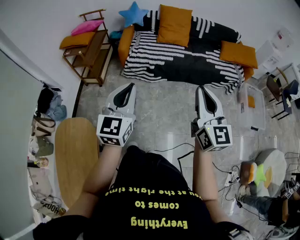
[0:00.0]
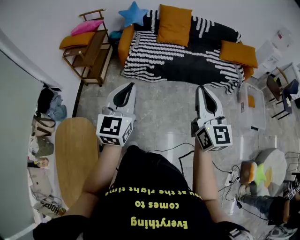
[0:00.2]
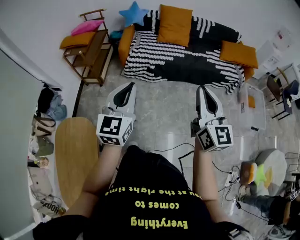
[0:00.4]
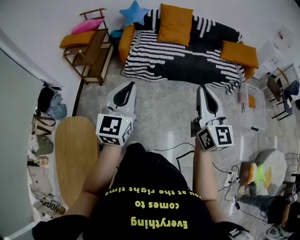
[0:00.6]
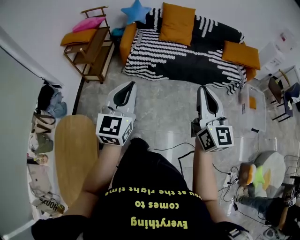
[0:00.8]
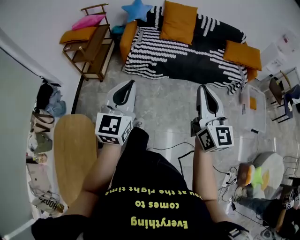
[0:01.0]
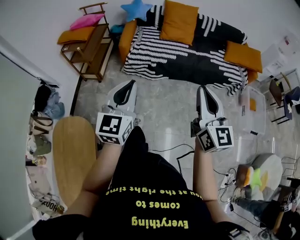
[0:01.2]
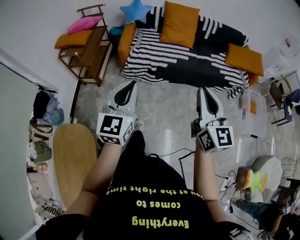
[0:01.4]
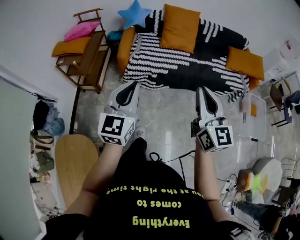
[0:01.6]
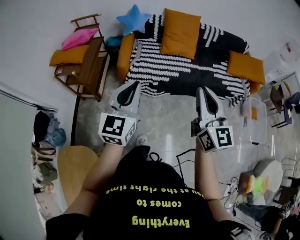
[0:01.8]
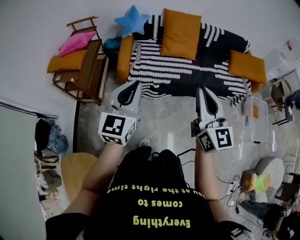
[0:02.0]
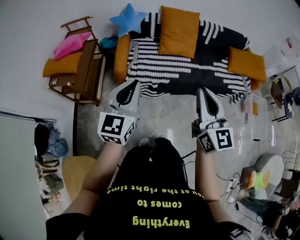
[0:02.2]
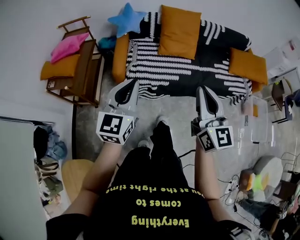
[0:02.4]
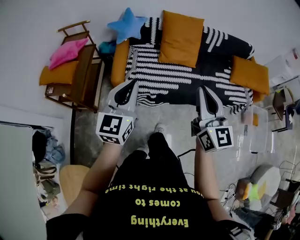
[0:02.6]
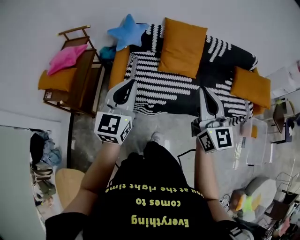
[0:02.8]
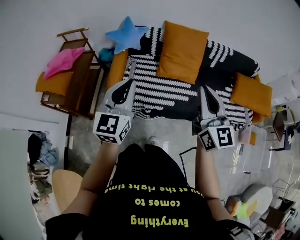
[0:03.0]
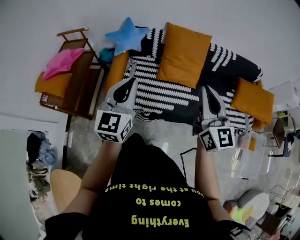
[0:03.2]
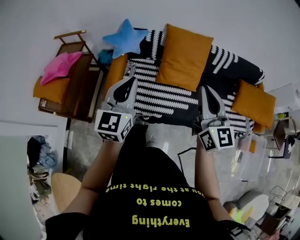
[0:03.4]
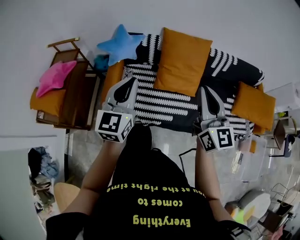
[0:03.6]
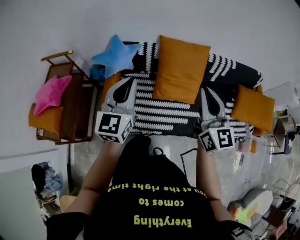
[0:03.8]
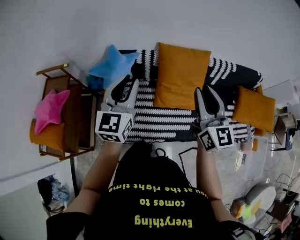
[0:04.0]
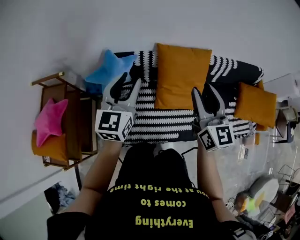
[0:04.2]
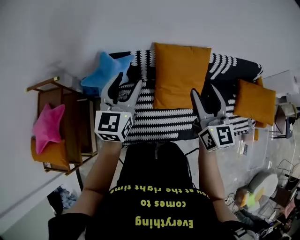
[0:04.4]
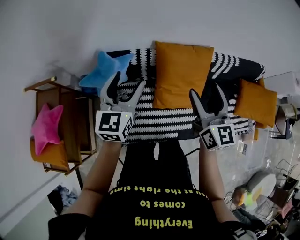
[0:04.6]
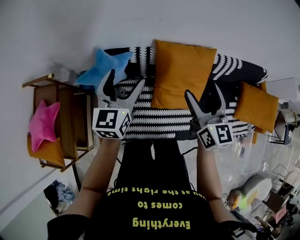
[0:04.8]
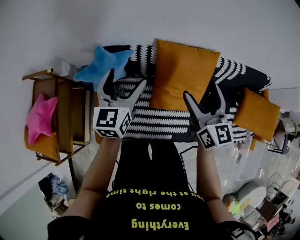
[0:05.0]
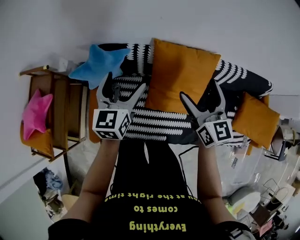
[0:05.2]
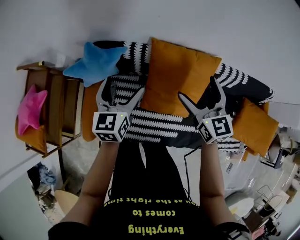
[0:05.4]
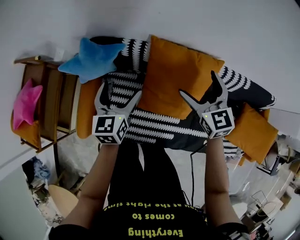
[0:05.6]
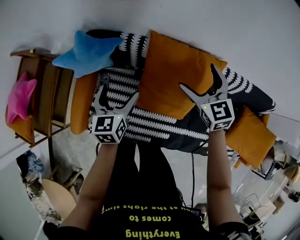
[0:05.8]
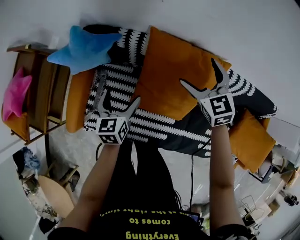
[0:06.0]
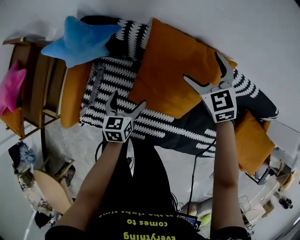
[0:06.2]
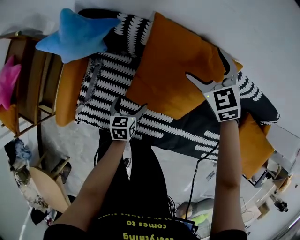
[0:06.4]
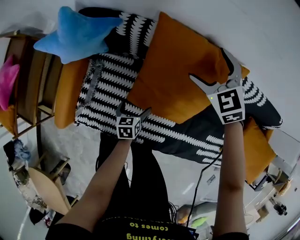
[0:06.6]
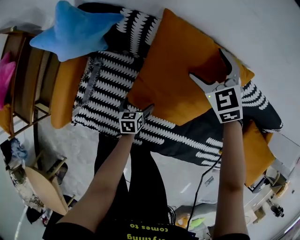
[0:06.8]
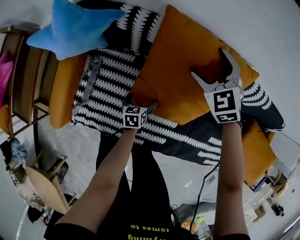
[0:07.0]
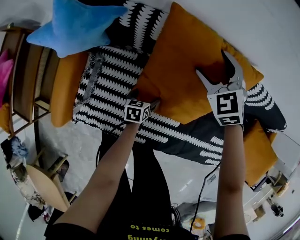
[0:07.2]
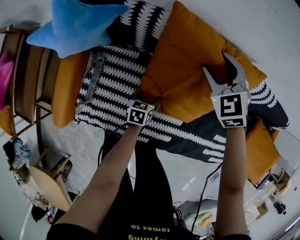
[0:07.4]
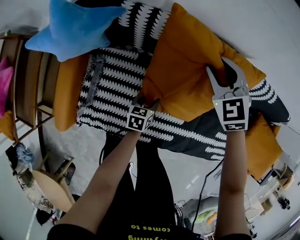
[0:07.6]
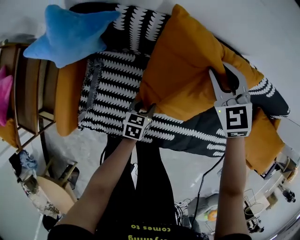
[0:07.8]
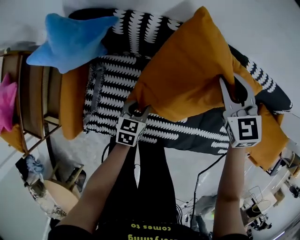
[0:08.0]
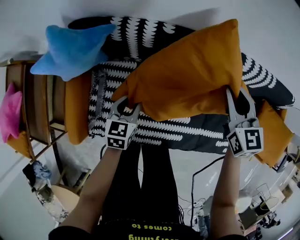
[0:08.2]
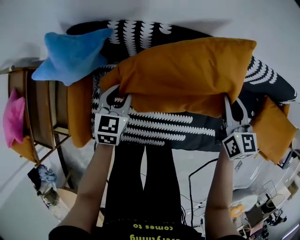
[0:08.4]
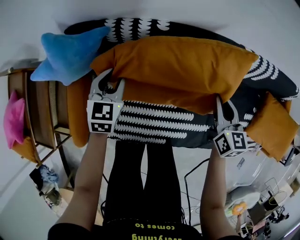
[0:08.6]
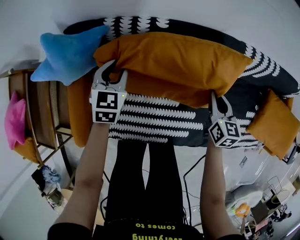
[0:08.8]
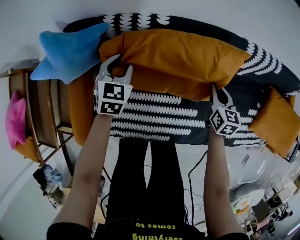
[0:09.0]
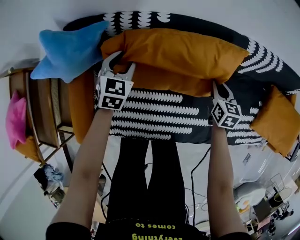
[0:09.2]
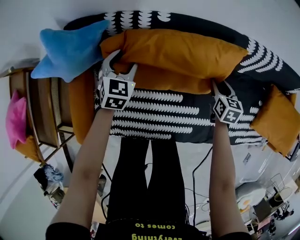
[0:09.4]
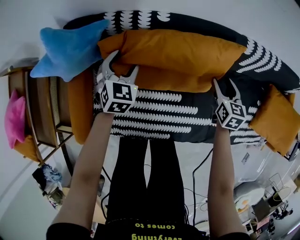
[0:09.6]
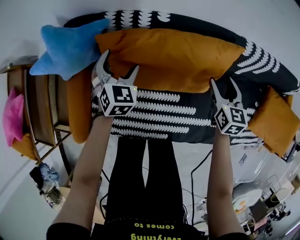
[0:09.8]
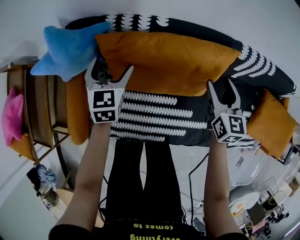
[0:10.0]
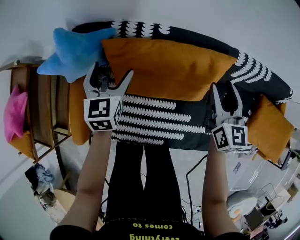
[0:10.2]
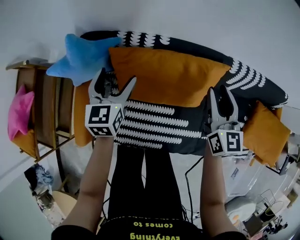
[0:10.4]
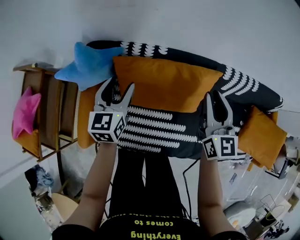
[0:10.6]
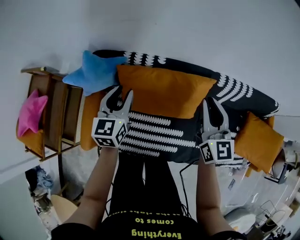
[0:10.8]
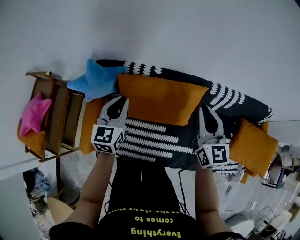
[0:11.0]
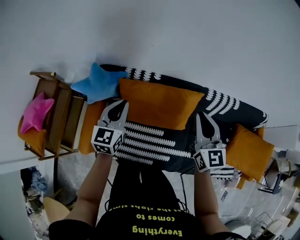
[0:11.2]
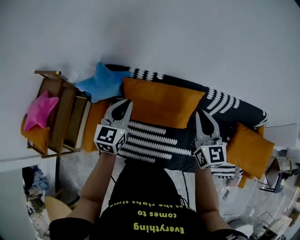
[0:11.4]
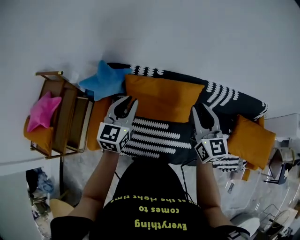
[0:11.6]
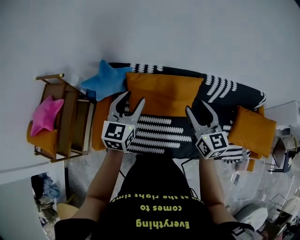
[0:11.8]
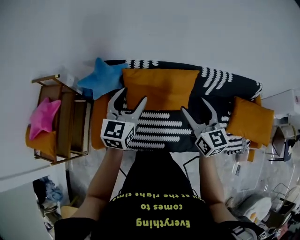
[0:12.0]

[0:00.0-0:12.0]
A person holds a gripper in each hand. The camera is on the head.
0.0 to 1.6 s: The grippers both shift forward by approximately 20 cm.
1.6 to 3.0 s: The pair of grippers is taken forward, some 40 cm.
3.0 to 4.4 s: Both grippers travel together forward, about 40 cm. The right gripper opens its fingers, while the left gripper opens its fingers.
4.4 to 6.0 s: The right gripper moves roughly 35 cm, changes its angle by approximately 50 degrees, and opens its fingers, while the left gripper shifts some 30 cm downward, changes its angle by approximately 40 degrees, and opens up.
6.0 to 7.6 s: The left gripper shifts some 25 cm downward, rotates approximately 30 degrees, and closes up; the right gripper travels downward by about 10 cm, and closes up.
7.6 to 9.0 s: The right gripper travels to the right, downward and backward by some 20 cm, and rotates around the line of its fingers by about 60 degrees, clockwise from behind, while the left gripper moves upward, forward and to the left, approximately 25 cm, and changes its angle by some 40 degrees.
9.0 to 10.4 s: The left gripper is displaced upward by roughly 15 cm, changes its angle by about 30 degrees, and opens, while the right gripper moves upward, roughly 25 cm, and turns by about 30 degrees.
10.4 to 12.0 s: The right gripper goes about 25 cm backward and upward. The left gripper goes roughly 30 cm upward and backward, and closes, then opens again.

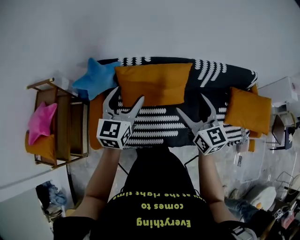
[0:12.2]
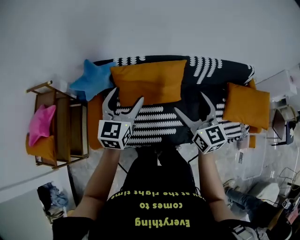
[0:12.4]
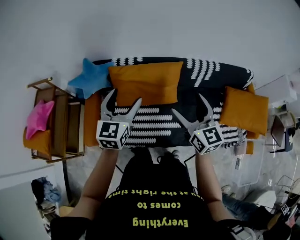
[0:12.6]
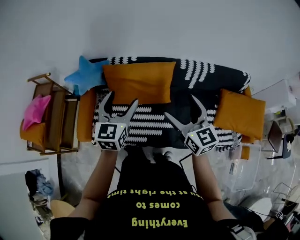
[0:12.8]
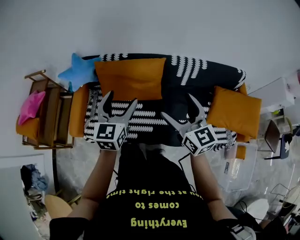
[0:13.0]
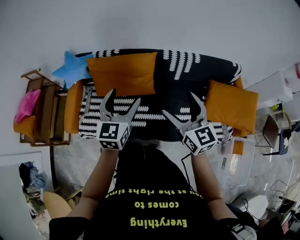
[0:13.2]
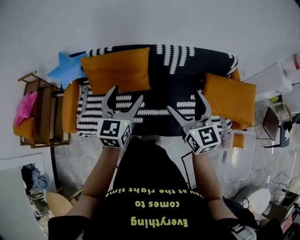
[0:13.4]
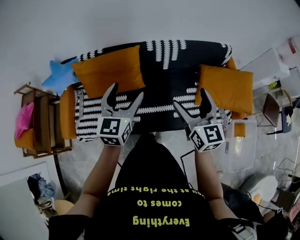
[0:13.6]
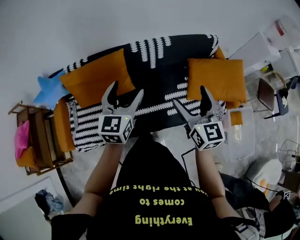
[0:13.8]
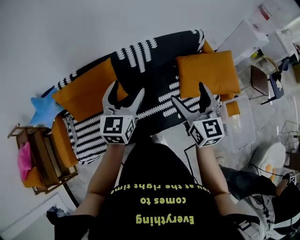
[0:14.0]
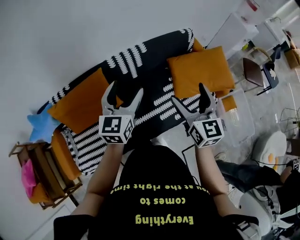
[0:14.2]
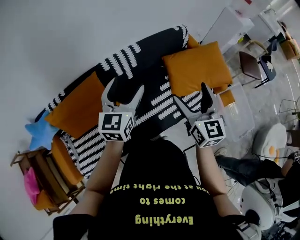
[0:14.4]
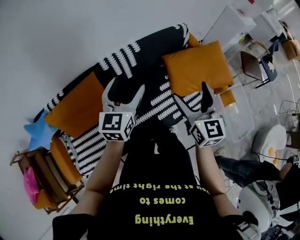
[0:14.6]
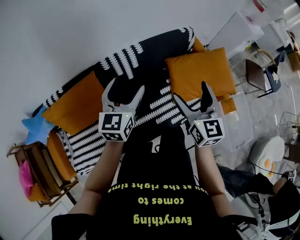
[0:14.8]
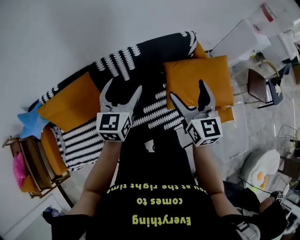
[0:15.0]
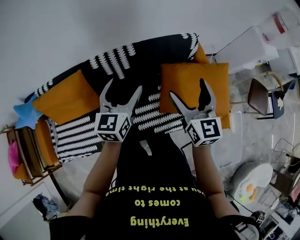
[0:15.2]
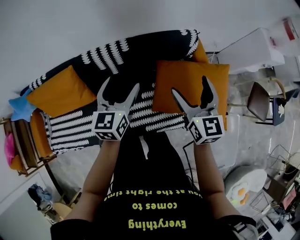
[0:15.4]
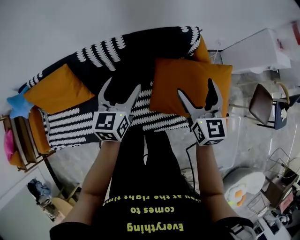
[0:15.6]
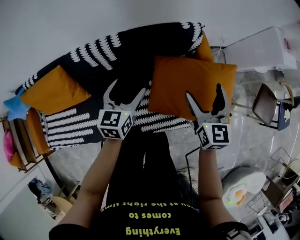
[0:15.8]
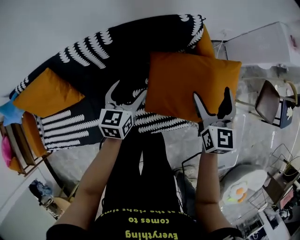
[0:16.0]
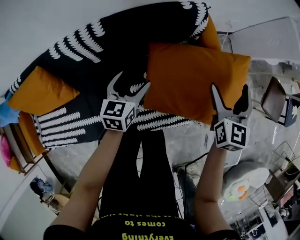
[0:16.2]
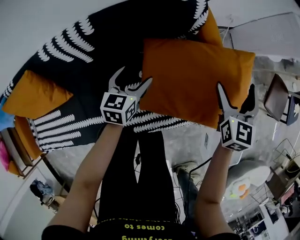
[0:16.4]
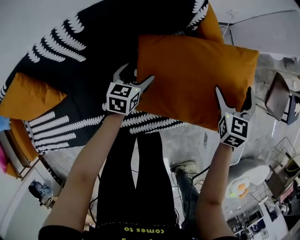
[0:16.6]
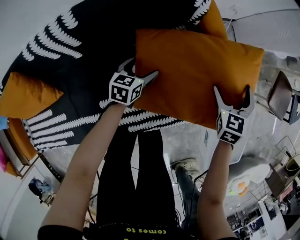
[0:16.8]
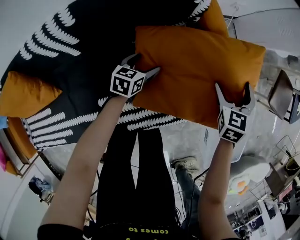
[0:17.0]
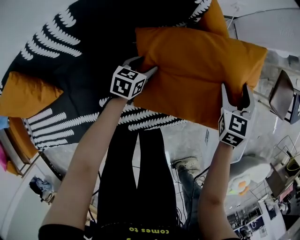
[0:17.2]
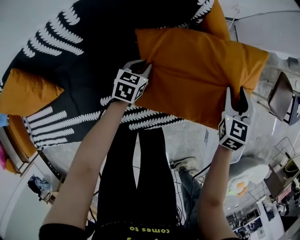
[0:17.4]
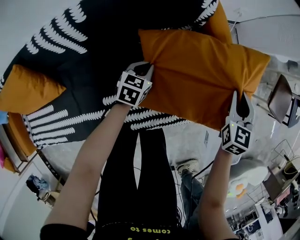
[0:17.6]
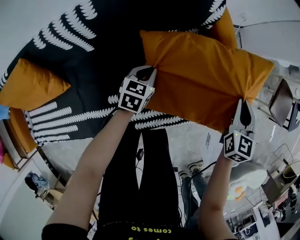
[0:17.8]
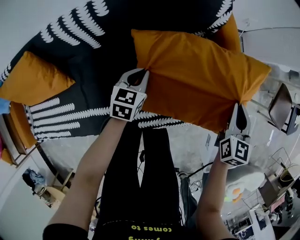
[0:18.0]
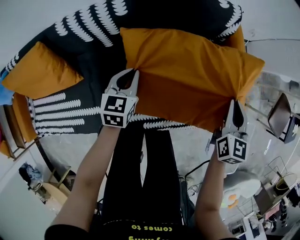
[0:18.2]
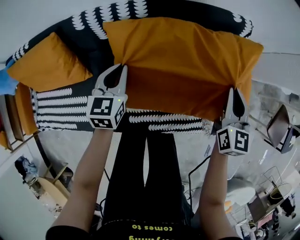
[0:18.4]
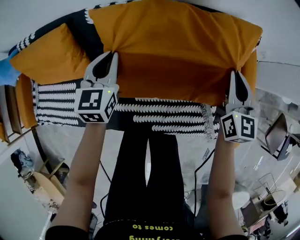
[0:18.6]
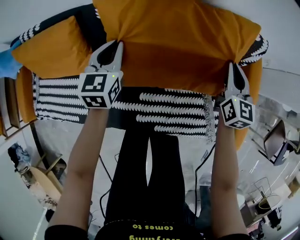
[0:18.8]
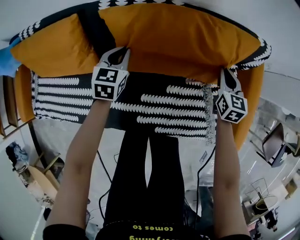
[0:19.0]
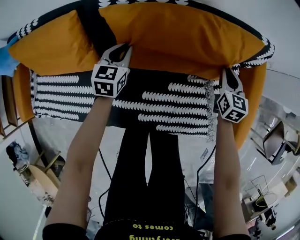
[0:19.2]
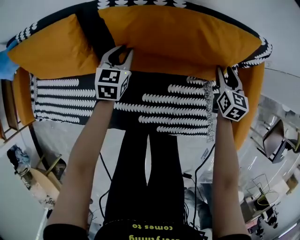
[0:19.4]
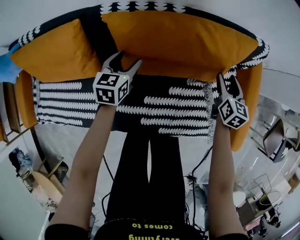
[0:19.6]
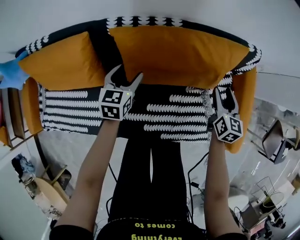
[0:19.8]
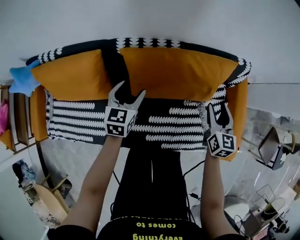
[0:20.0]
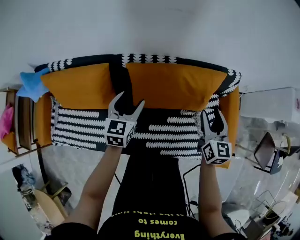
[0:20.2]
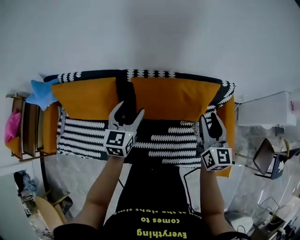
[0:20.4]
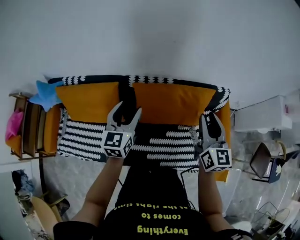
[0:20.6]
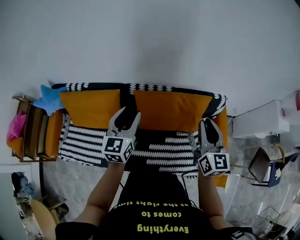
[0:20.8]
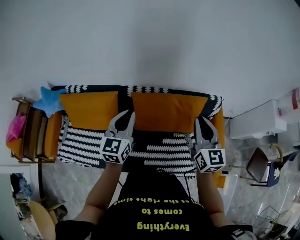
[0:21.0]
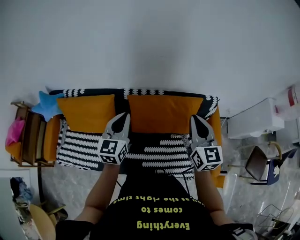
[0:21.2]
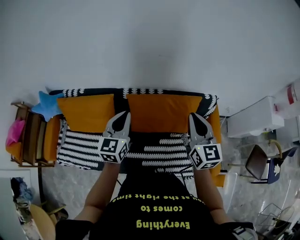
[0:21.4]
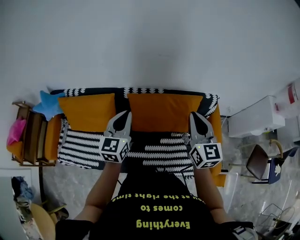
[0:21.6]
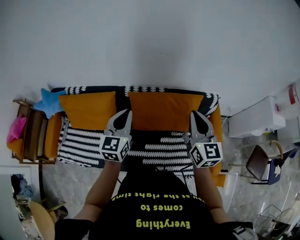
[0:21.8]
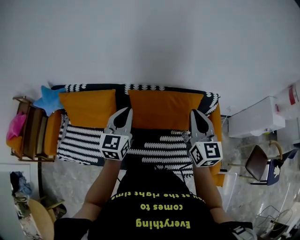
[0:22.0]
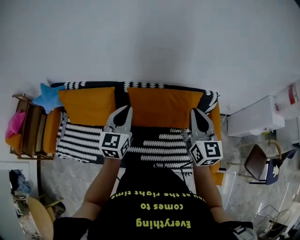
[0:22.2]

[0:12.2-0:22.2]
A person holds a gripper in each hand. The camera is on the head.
12.2 to 13.6 s: The two grippers go about 35 cm to the right.
13.6 to 15.0 s: The left gripper travels forward and to the right by approximately 30 cm. Meanwhile the right gripper moves to the right and forward, roughly 25 cm.
15.0 to 16.4 s: The right gripper travels to the right, downward and forward by approximately 50 cm, and turns by approximately 20 degrees. Meanwhile the left gripper shifts some 50 cm downward, to the right and forward, and rotates about 30 degrees.
16.4 to 18.0 s: The right gripper is displaced backward and downward by about 10 cm, and closes its fingers. Meanwhile the left gripper travels downward by roughly 5 cm, and closes.
18.0 to 19.4 s: The right gripper changes place by roughly 30 cm, and turns by approximately 20 degrees. The left gripper goes upward and returns, approximately 15 cm each way, and rotates about 20 degrees.
19.4 to 20.8 s: Both grippers move upward, about 40 cm. The right gripper angles its fingers upward, by about 30 degrees. The left gripper rotates roughly 30 degrees.
20.8 to 22.2 s: The grippers make only small movements.

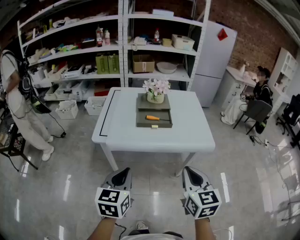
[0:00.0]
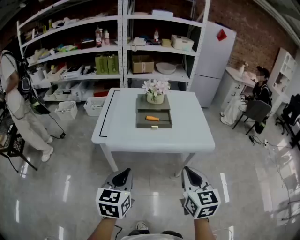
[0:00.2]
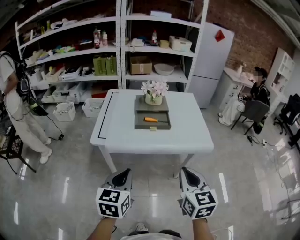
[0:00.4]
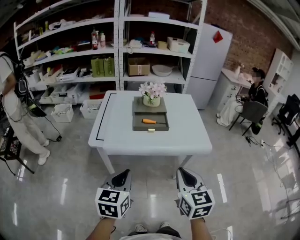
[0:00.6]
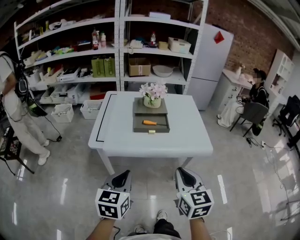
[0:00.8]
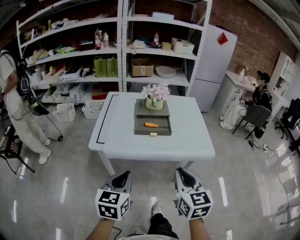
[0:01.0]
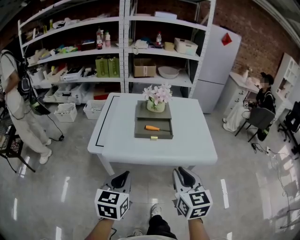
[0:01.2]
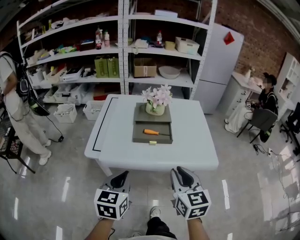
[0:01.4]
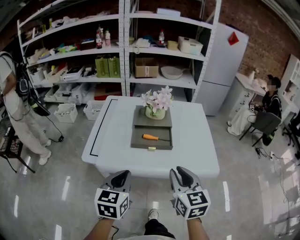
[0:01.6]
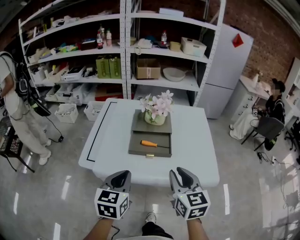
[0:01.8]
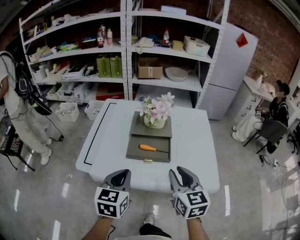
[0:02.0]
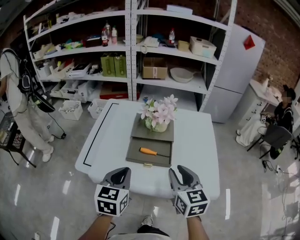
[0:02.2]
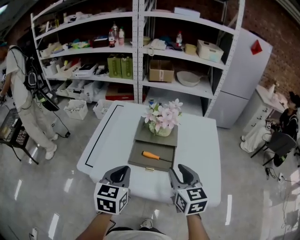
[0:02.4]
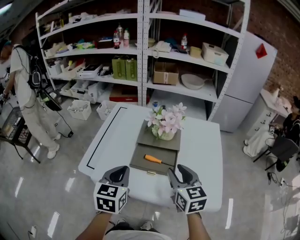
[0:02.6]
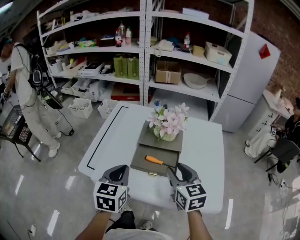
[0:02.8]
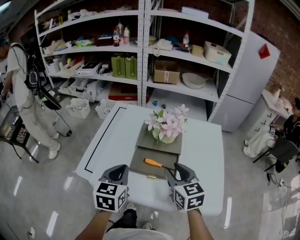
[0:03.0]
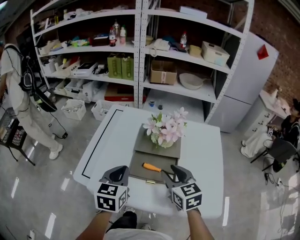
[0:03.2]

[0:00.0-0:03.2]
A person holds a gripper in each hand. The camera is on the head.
0.0 to 1.6 s: Both grippers travel together forward, about 15 cm.
1.6 to 3.2 s: The two grippers go about 20 cm forward. The right gripper swivels roughly 20 degrees, and opens up.
